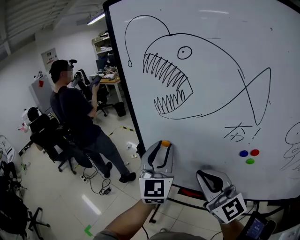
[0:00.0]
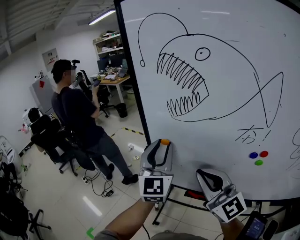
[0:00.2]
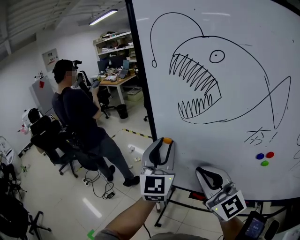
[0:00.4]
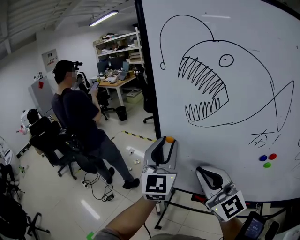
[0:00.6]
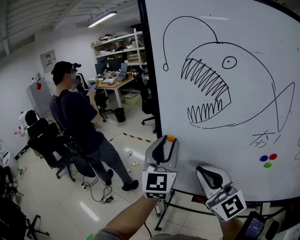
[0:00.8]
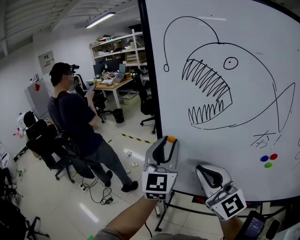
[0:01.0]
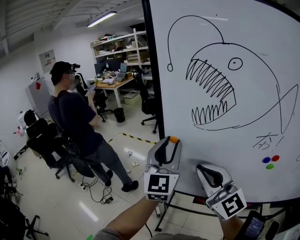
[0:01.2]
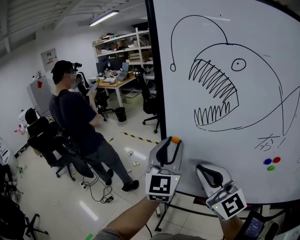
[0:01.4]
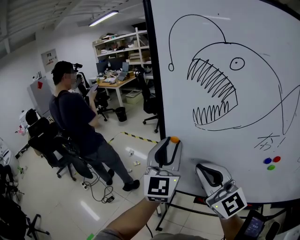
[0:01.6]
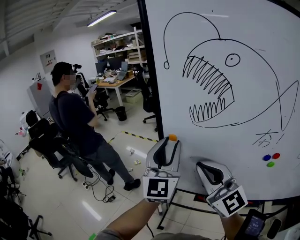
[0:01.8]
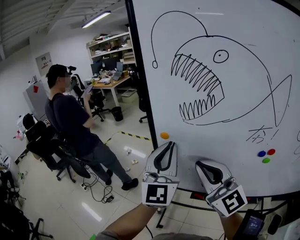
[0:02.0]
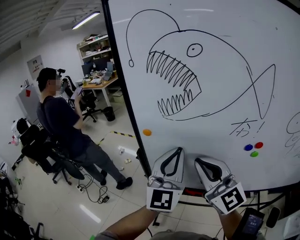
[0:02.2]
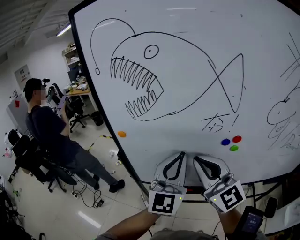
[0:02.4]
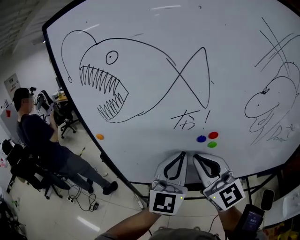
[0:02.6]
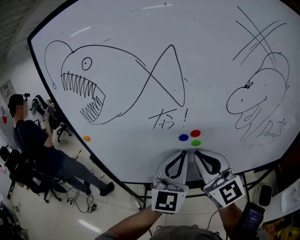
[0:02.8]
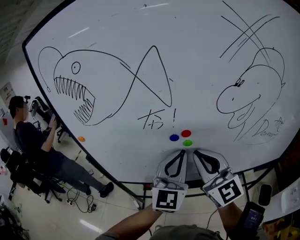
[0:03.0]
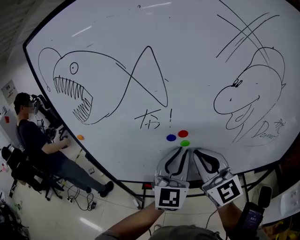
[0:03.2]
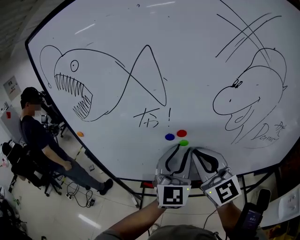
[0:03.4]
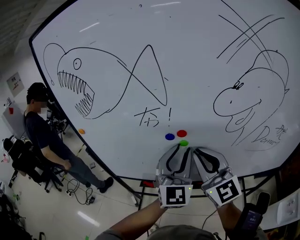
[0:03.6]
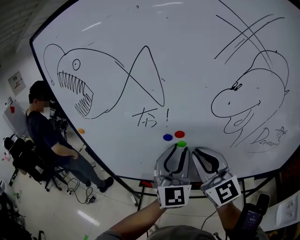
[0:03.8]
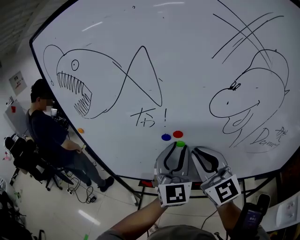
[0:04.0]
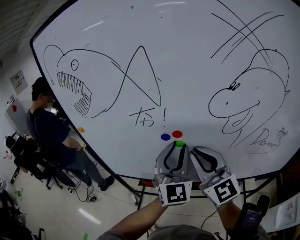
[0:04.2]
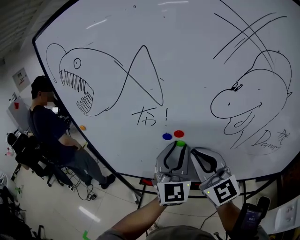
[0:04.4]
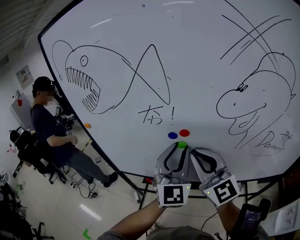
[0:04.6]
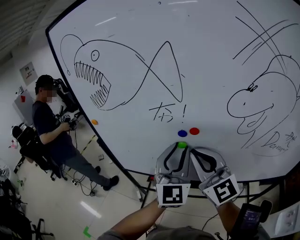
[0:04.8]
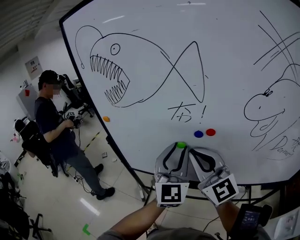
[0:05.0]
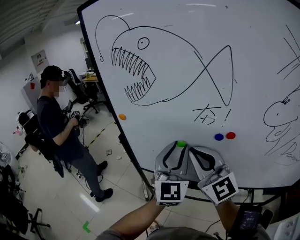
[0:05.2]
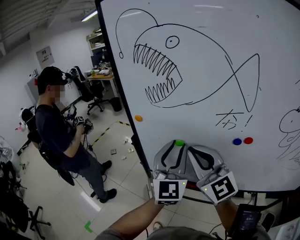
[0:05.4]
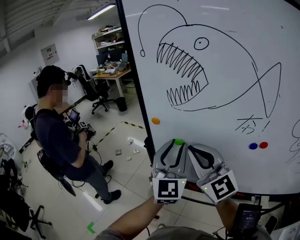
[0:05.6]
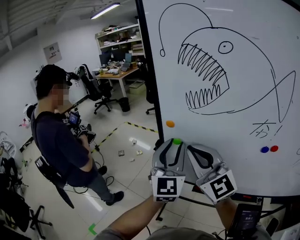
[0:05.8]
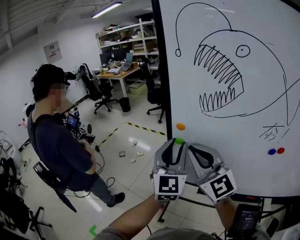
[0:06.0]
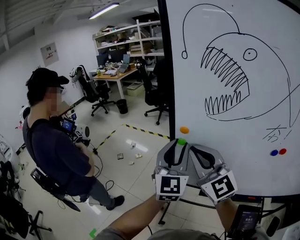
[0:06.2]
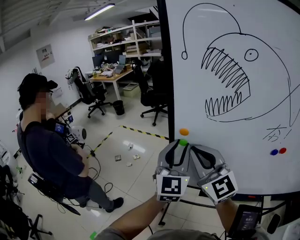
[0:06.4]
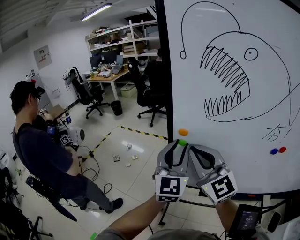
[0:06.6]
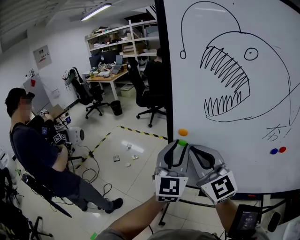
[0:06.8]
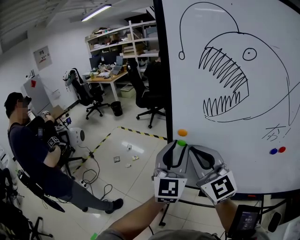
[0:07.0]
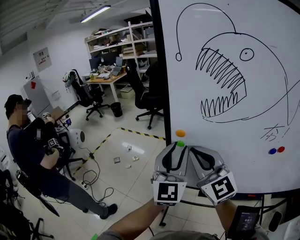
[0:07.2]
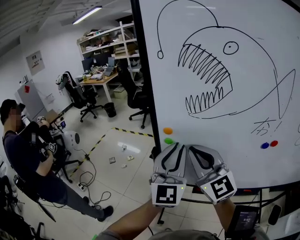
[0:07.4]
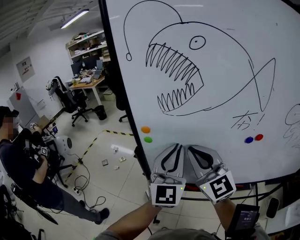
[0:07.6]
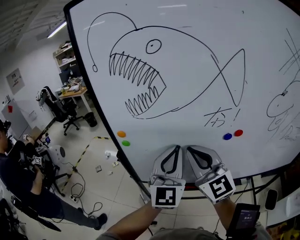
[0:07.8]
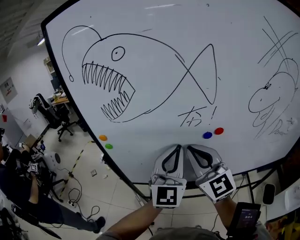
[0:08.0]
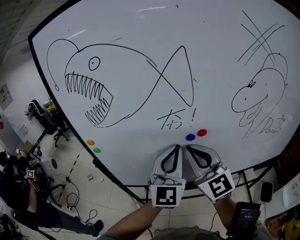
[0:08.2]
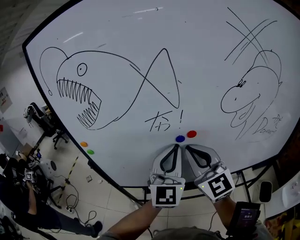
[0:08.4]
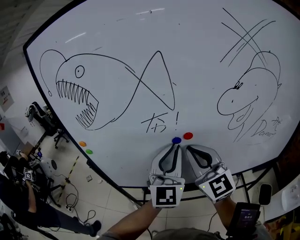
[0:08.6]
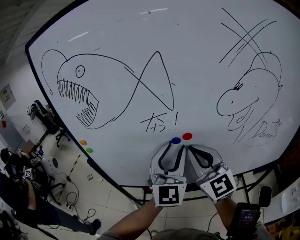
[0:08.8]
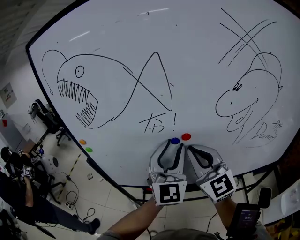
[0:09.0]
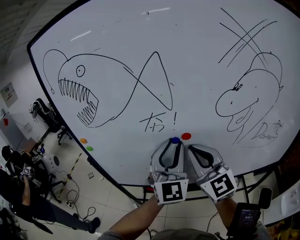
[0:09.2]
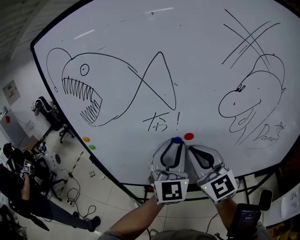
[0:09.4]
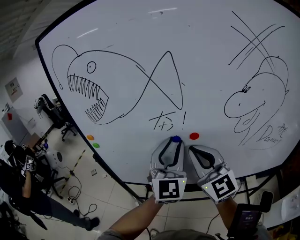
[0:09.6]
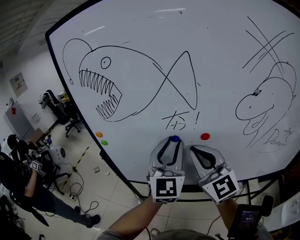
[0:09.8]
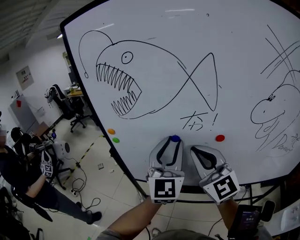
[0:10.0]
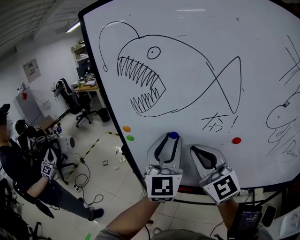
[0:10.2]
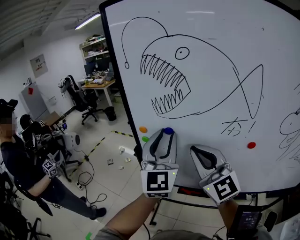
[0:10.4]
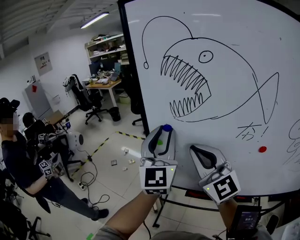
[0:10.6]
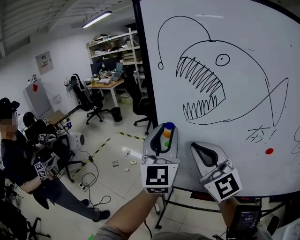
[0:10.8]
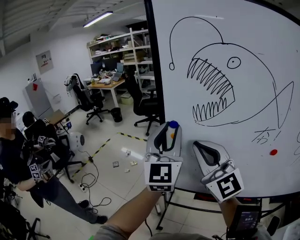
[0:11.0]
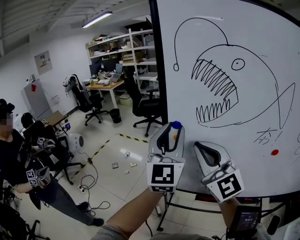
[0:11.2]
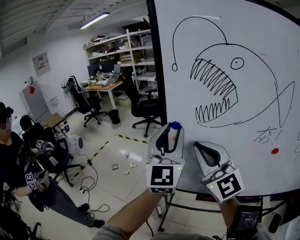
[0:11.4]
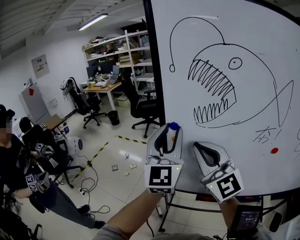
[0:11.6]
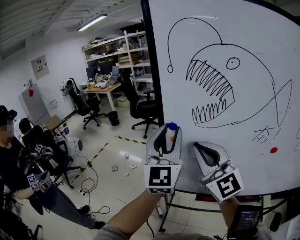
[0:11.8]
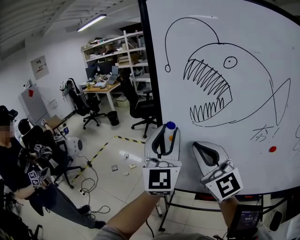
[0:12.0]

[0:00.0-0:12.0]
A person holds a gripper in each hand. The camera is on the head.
0:00.0 to 0:01.6: The two grippers go approximately 10 cm to the left and forward.
0:01.6 to 0:03.0: The right gripper changes place by roughly 35 cm, and changes its angle by approximately 20 degrees. The left gripper moves roughly 40 cm, changes its angle by some 20 degrees, and closes its fingers.
0:03.0 to 0:04.4: The left gripper opens.
0:04.4 to 0:06.0: The two grippers go about 40 cm to the left and forward.
0:06.0 to 0:07.6: Both grippers move to the right, some 10 cm. The left gripper closes its fingers.
0:07.6 to 0:09.0: Both grippers move to the right, roughly 25 cm. The left gripper opens its fingers.
0:09.0 to 0:10.4: The two grippers go approximately 25 cm to the left.
0:10.4 to 0:12.0: The left gripper moves to the left, roughly 10 cm. The right gripper goes some 10 cm to the left and forward.

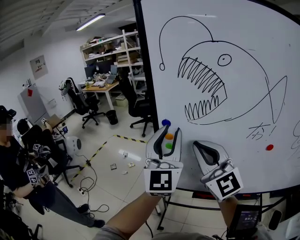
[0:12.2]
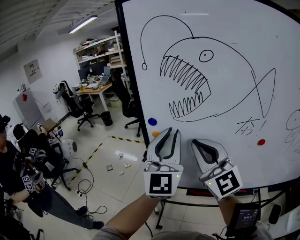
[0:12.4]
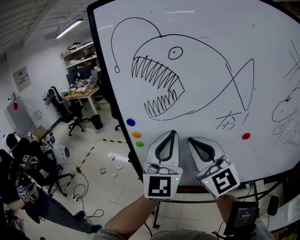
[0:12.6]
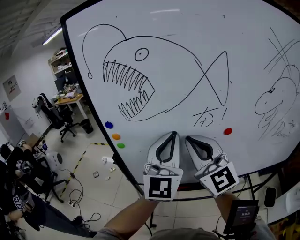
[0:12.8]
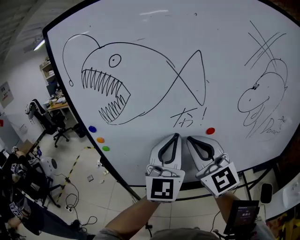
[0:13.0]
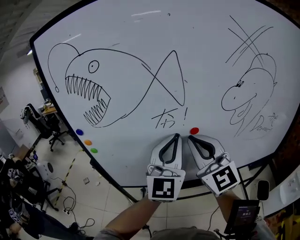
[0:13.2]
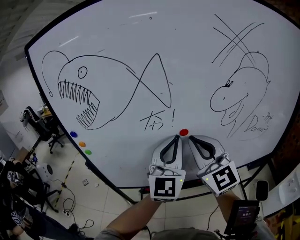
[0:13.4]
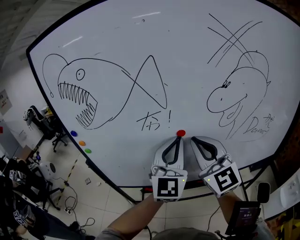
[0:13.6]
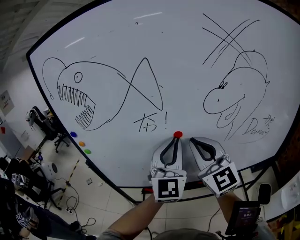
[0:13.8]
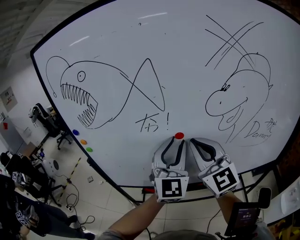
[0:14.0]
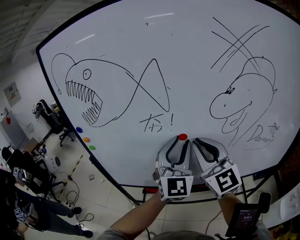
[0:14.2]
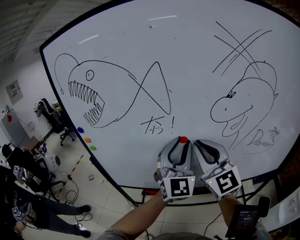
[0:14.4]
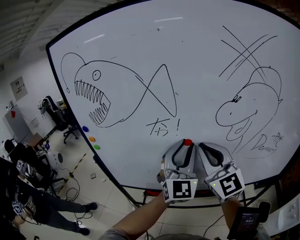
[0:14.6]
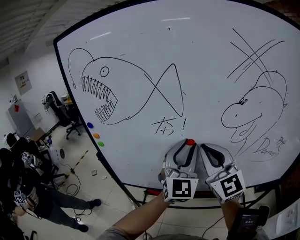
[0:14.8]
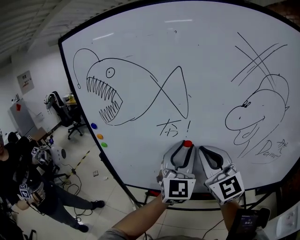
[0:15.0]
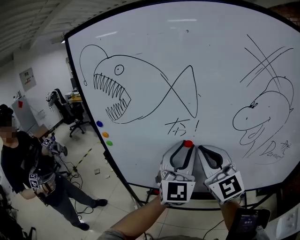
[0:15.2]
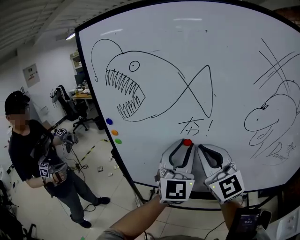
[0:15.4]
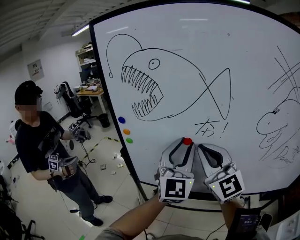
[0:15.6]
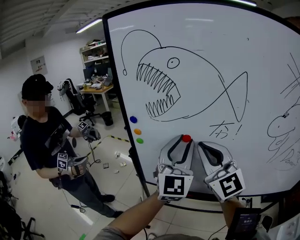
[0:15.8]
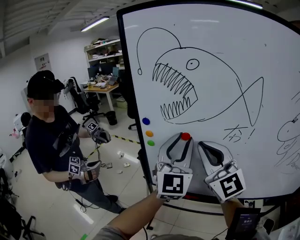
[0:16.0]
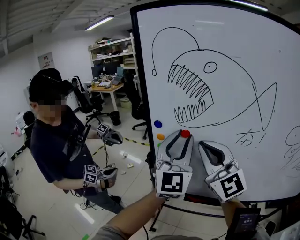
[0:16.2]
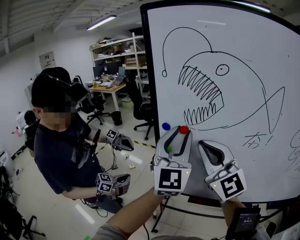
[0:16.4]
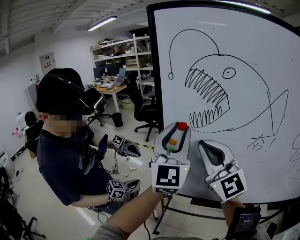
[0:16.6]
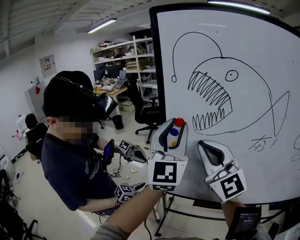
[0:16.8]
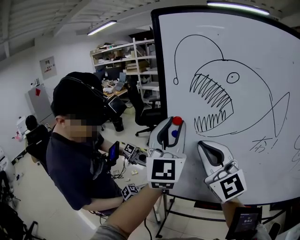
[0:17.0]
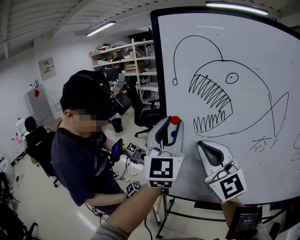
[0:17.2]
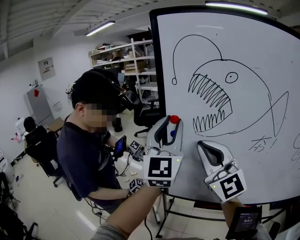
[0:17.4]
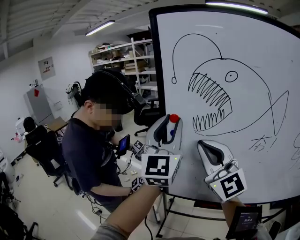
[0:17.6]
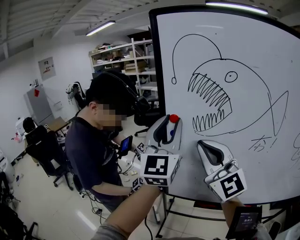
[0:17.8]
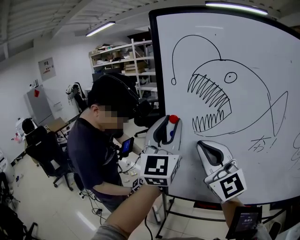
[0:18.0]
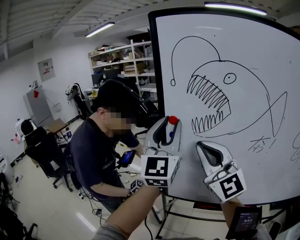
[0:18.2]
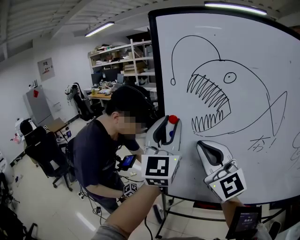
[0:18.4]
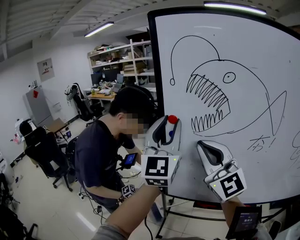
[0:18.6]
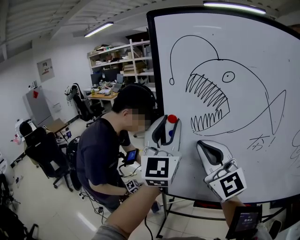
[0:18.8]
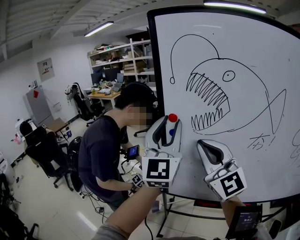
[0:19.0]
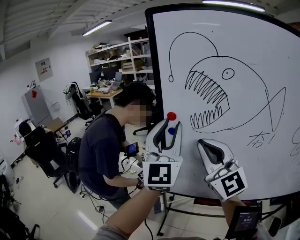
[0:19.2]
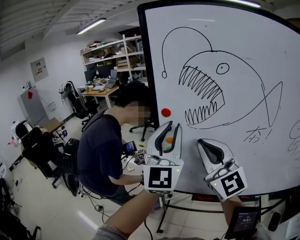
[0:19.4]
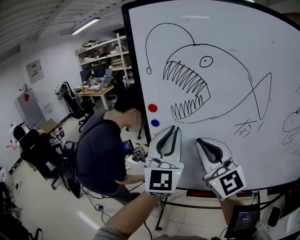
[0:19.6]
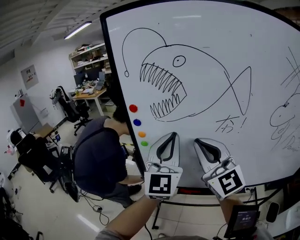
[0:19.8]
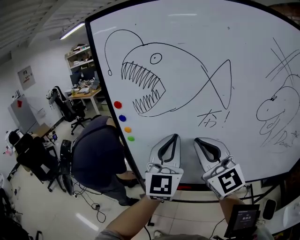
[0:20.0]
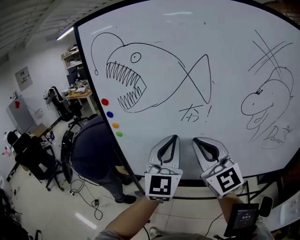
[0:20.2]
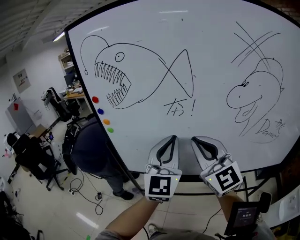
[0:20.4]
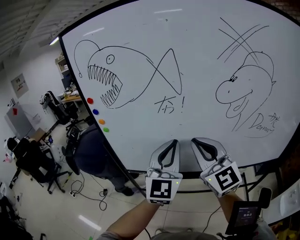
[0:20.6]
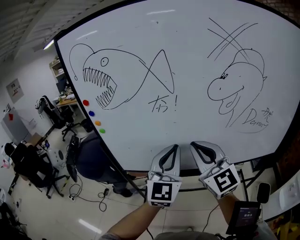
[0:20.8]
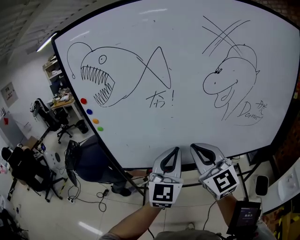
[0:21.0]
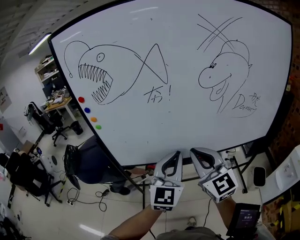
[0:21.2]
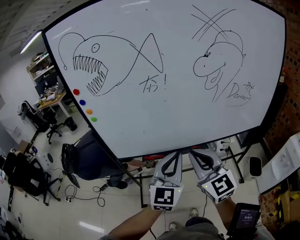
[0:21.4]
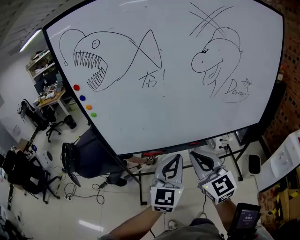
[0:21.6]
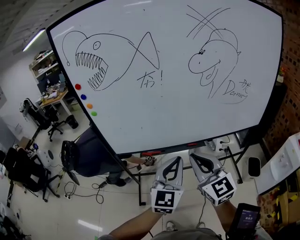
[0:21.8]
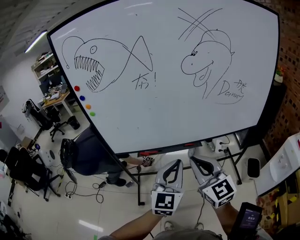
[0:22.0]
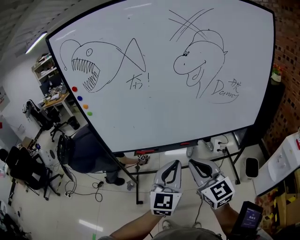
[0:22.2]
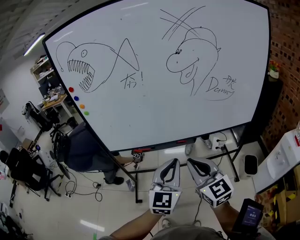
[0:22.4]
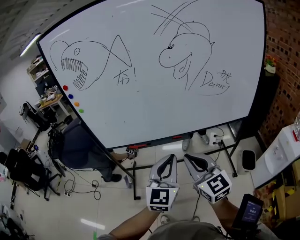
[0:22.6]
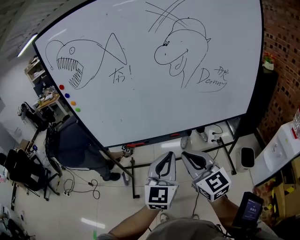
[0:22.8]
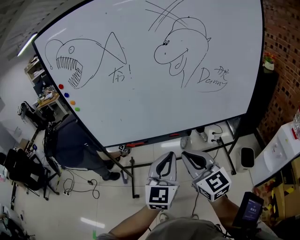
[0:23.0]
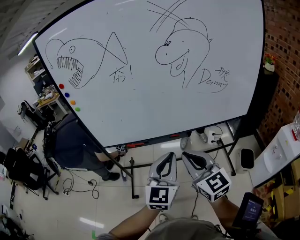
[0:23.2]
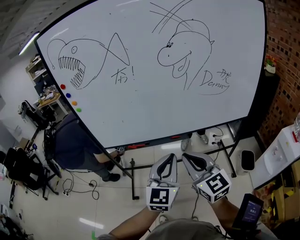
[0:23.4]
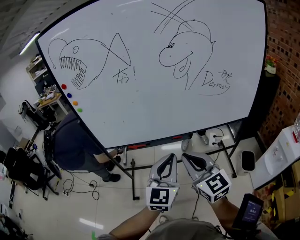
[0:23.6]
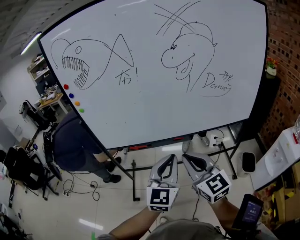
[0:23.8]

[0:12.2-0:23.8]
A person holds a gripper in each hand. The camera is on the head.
0:12.2 to 0:13.6: Both grippers travel together to the right, some 35 cm. The left gripper changes its angle by roughly 20 degrees, and closes its fingers.
0:13.6 to 0:15.0: The left gripper opens its fingers.
0:15.0 to 0:16.6: The two grippers go some 30 cm to the left.
0:16.6 to 0:18.0: The left gripper changes place by roughly 5 cm.
0:18.0 to 0:19.4: The grippers stay close to where they were, moving slightly.
0:19.4 to 0:21.0: The left gripper heads to the right, backward and downward, covering roughly 40 cm, and rotates about 20 degrees. The right gripper shifts roughly 30 cm to the right and backward.
0:21.0 to 0:22.4: The right gripper heads backward, downward and to the right, covering some 20 cm. Meanwhile the left gripper is displaced backward, to the right and downward by about 20 cm.
0:22.4 to 0:23.8: There are only small adjustments of the grippers.
